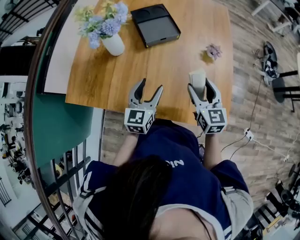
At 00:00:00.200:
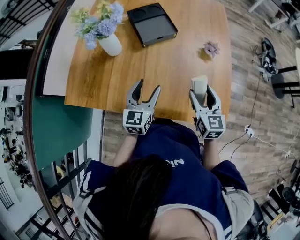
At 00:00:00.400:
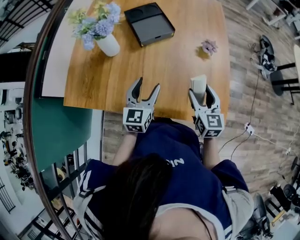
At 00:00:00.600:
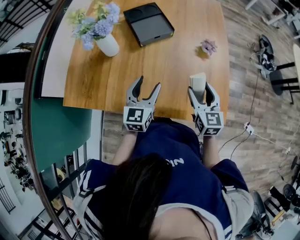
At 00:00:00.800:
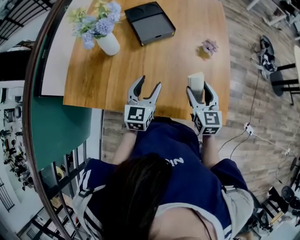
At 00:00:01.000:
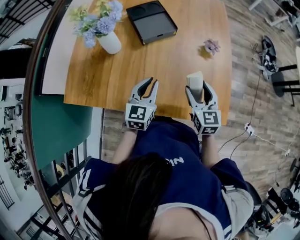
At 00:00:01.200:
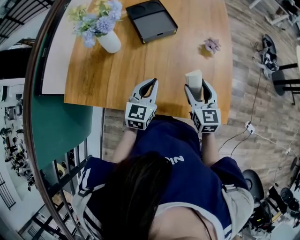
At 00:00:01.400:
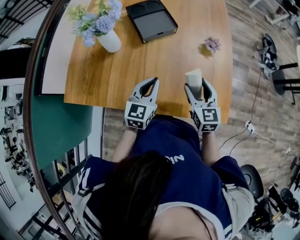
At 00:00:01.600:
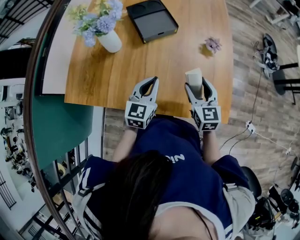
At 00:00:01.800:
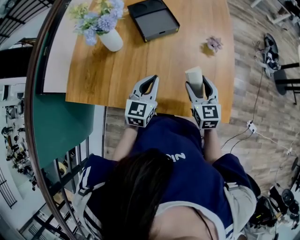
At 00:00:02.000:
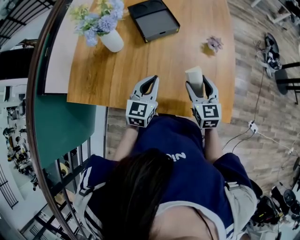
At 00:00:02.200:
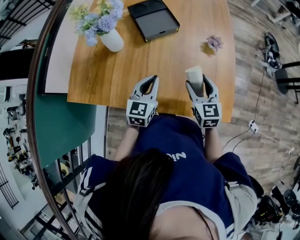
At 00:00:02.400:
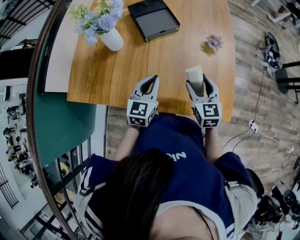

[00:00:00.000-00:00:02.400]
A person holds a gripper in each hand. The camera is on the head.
00:00:00.000 to 00:00:01.200: The left gripper closes its fingers.
00:00:01.200 to 00:00:02.400: Both grippers stay about where they are.

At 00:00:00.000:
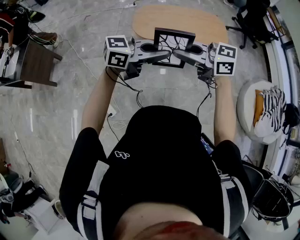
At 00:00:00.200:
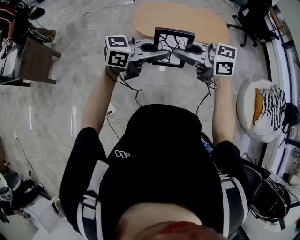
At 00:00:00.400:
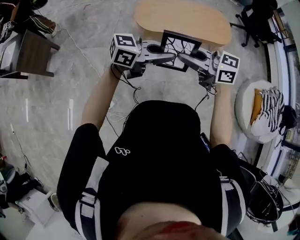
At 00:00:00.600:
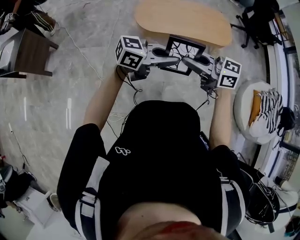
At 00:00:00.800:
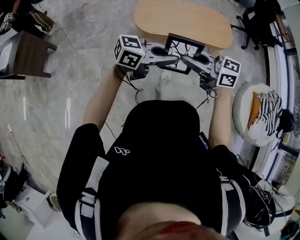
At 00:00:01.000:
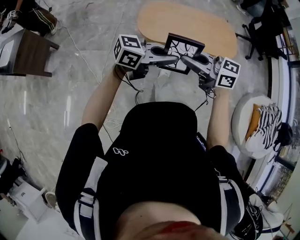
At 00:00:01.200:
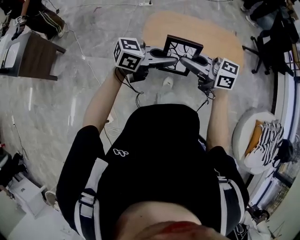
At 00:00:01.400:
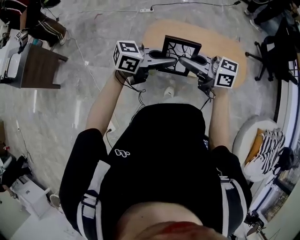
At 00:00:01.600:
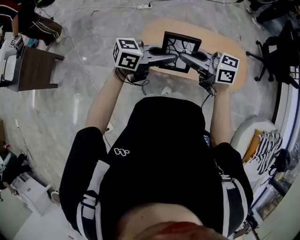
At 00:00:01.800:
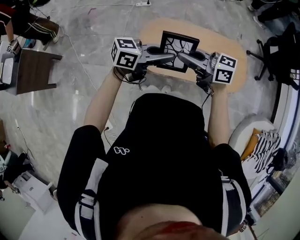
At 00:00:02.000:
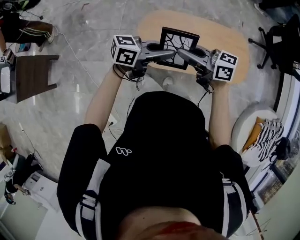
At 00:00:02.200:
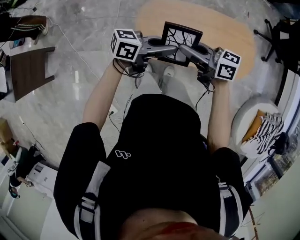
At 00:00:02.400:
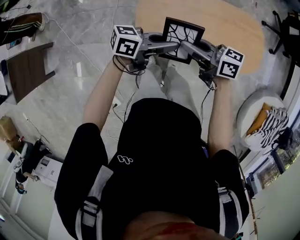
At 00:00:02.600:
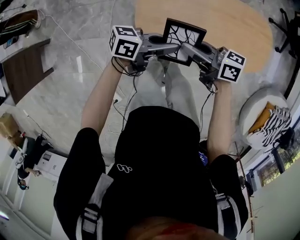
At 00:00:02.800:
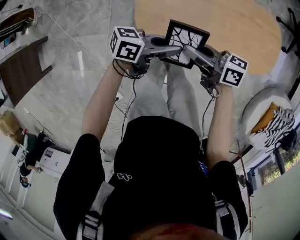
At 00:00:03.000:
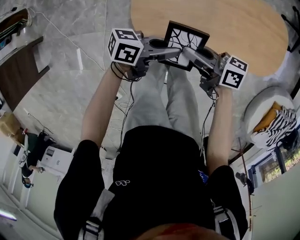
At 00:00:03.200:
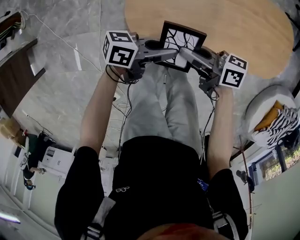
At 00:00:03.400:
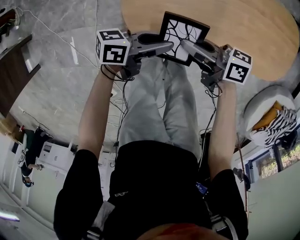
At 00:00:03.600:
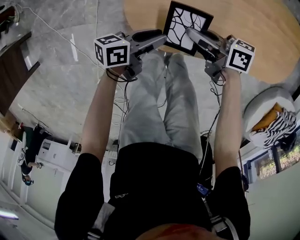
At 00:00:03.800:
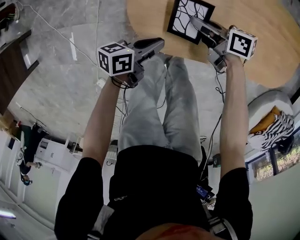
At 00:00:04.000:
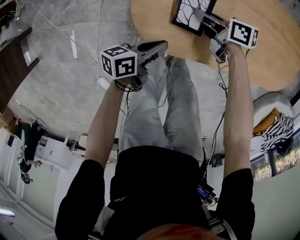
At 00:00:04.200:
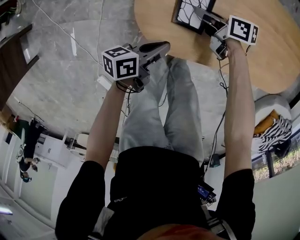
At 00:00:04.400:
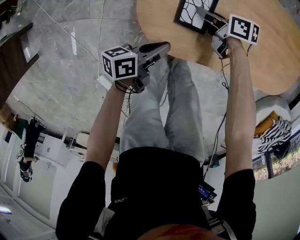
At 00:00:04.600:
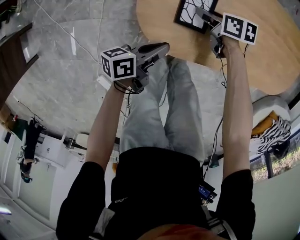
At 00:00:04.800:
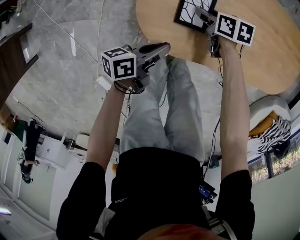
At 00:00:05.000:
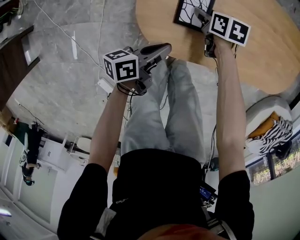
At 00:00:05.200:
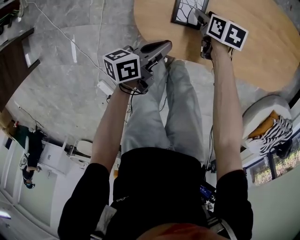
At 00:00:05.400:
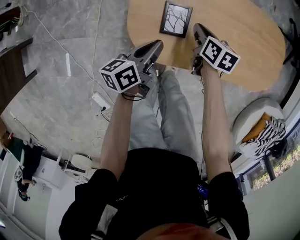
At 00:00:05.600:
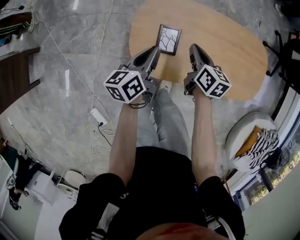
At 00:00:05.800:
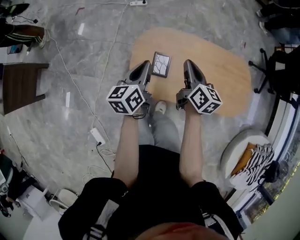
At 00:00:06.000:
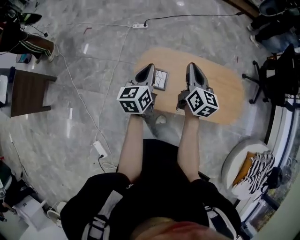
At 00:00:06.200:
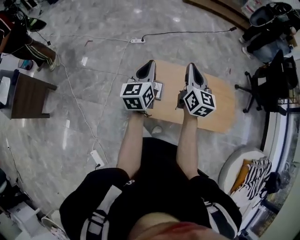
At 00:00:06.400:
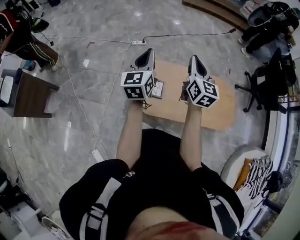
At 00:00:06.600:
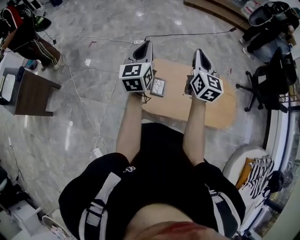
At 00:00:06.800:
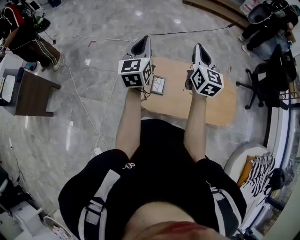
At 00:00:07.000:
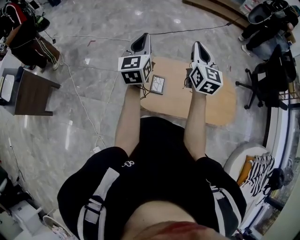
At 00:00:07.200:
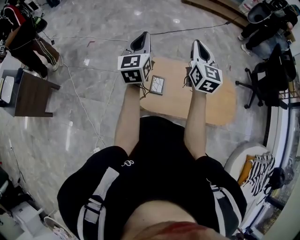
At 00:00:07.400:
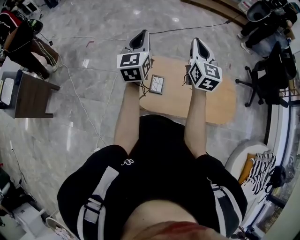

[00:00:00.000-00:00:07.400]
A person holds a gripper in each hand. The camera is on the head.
00:00:00.000 to 00:00:01.400: The left gripper shifts by about 35 cm. Meanwhile the right gripper shifts by about 35 cm.
00:00:01.400 to 00:00:03.000: The grippers both shift downward by some 30 cm. The left gripper changes its angle by some 40 degrees. Meanwhile the right gripper changes its angle by roughly 40 degrees.
00:00:03.000 to 00:00:04.400: The grippers both shift downward by some 20 cm. The left gripper rotates approximately 30 degrees, and opens, then closes once more, while the right gripper changes its angle by approximately 30 degrees.
00:00:04.400 to 00:00:06.000: Both grippers travel together upward, some 40 cm. The right gripper turns by roughly 70 degrees, and opens, then closes once more. The left gripper rotates some 60 degrees.
00:00:06.000 to 00:00:07.400: Both grippers travel together upward, some 15 cm. The right gripper swivels approximately 20 degrees. The left gripper swivels some 30 degrees.

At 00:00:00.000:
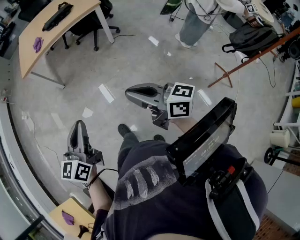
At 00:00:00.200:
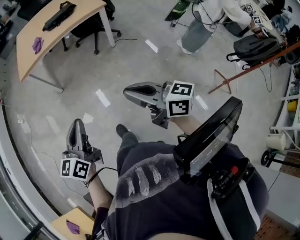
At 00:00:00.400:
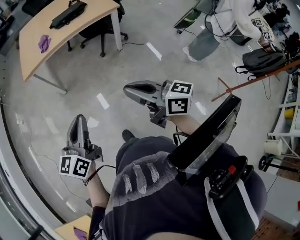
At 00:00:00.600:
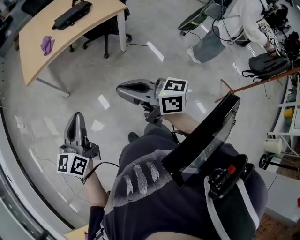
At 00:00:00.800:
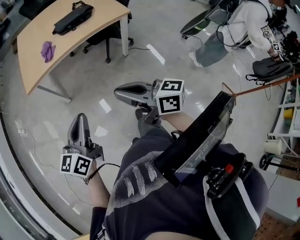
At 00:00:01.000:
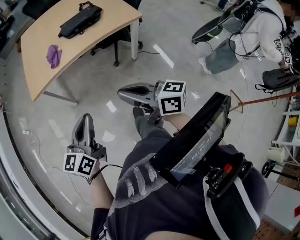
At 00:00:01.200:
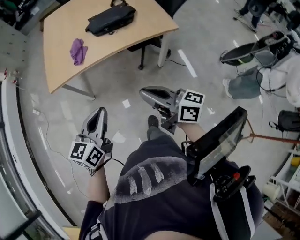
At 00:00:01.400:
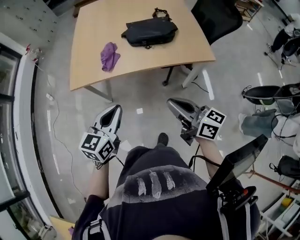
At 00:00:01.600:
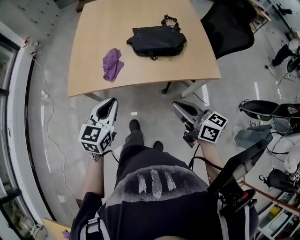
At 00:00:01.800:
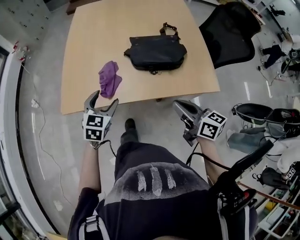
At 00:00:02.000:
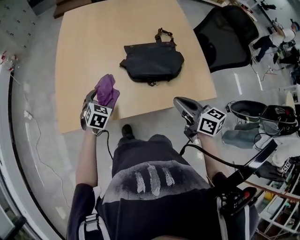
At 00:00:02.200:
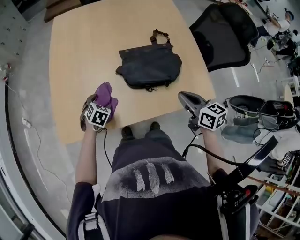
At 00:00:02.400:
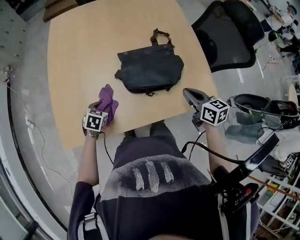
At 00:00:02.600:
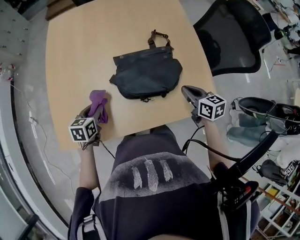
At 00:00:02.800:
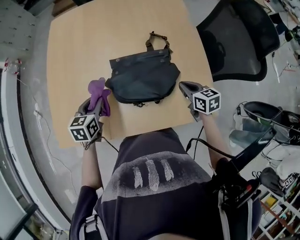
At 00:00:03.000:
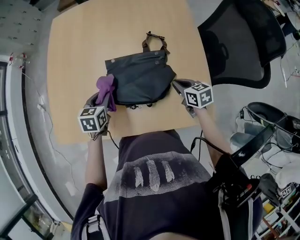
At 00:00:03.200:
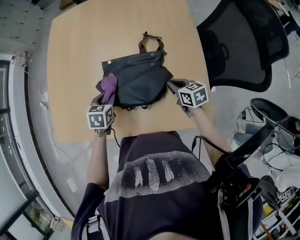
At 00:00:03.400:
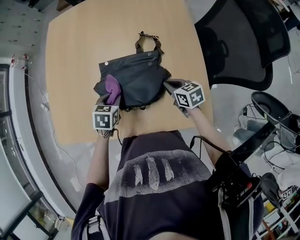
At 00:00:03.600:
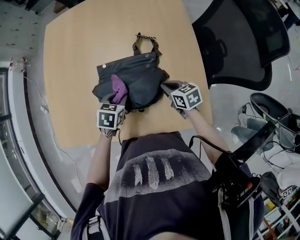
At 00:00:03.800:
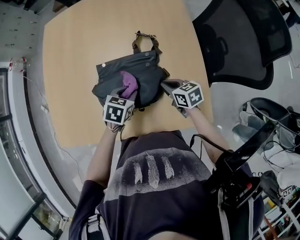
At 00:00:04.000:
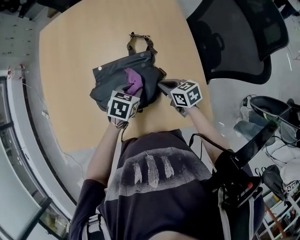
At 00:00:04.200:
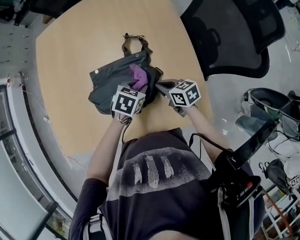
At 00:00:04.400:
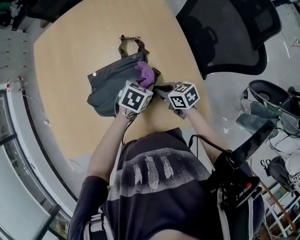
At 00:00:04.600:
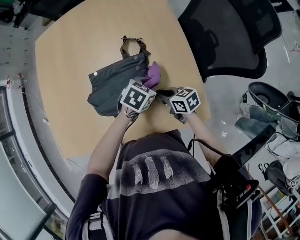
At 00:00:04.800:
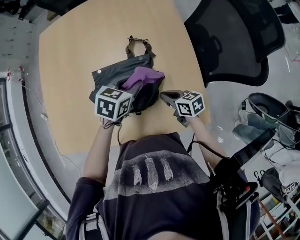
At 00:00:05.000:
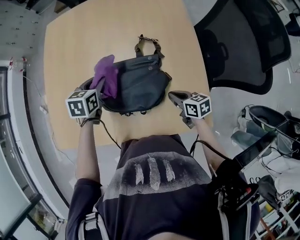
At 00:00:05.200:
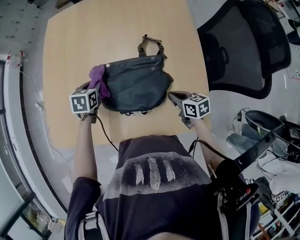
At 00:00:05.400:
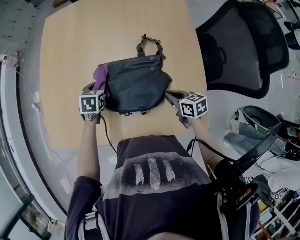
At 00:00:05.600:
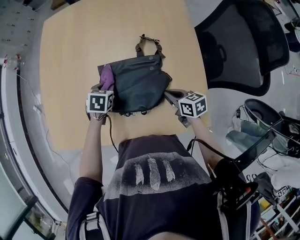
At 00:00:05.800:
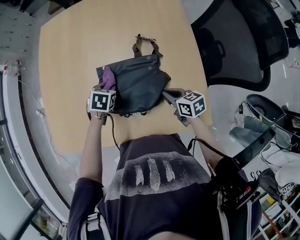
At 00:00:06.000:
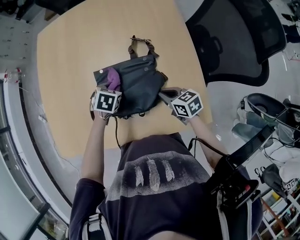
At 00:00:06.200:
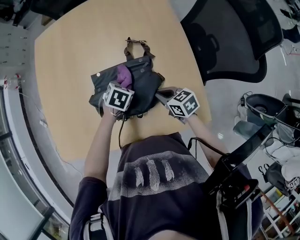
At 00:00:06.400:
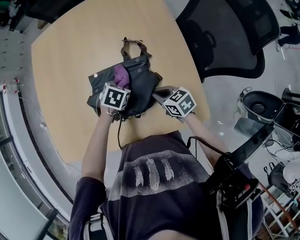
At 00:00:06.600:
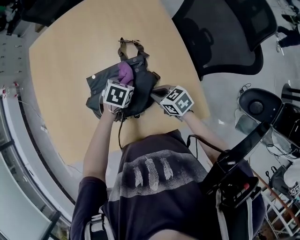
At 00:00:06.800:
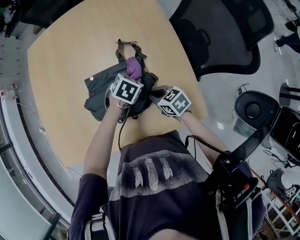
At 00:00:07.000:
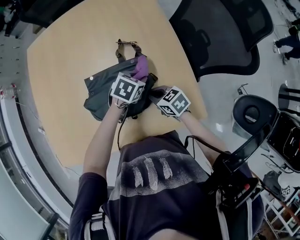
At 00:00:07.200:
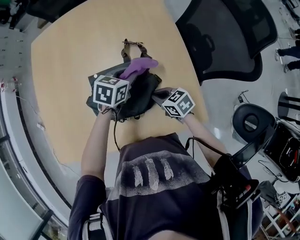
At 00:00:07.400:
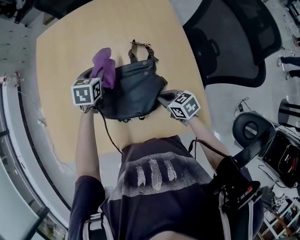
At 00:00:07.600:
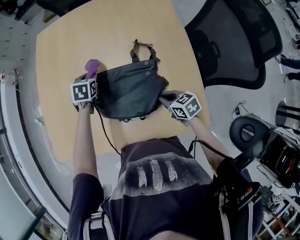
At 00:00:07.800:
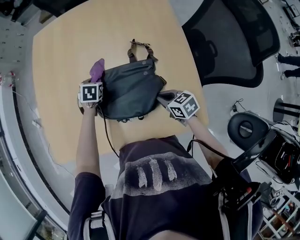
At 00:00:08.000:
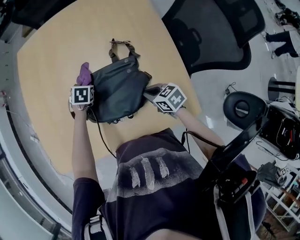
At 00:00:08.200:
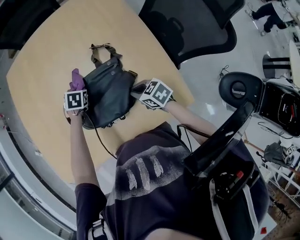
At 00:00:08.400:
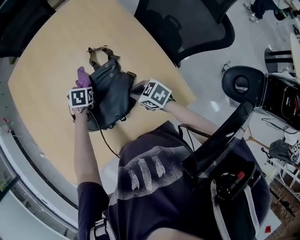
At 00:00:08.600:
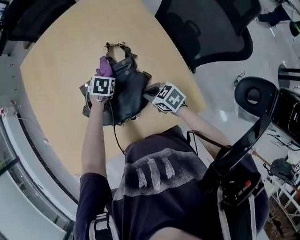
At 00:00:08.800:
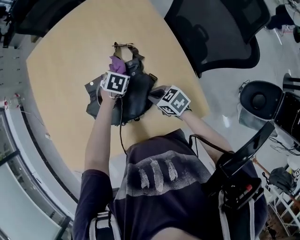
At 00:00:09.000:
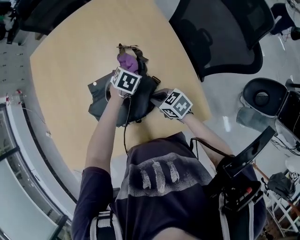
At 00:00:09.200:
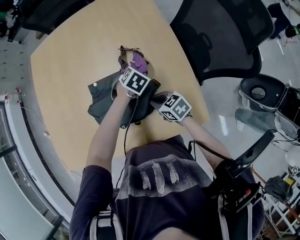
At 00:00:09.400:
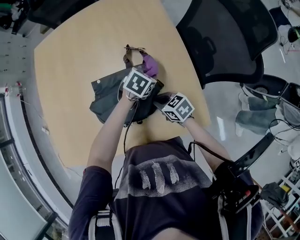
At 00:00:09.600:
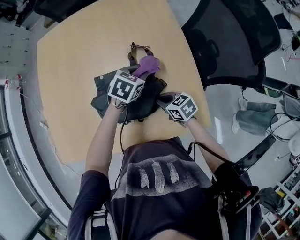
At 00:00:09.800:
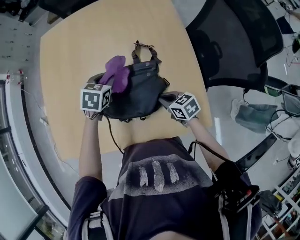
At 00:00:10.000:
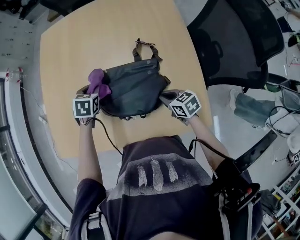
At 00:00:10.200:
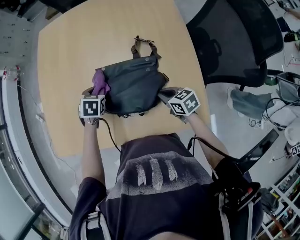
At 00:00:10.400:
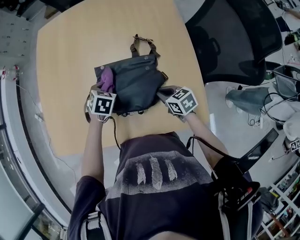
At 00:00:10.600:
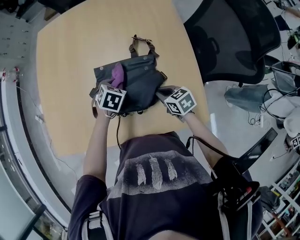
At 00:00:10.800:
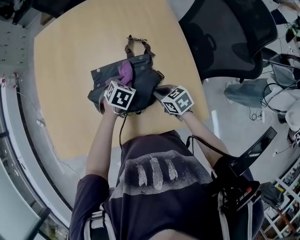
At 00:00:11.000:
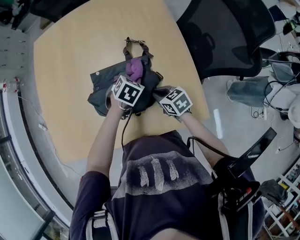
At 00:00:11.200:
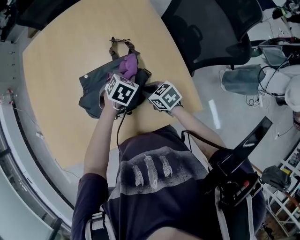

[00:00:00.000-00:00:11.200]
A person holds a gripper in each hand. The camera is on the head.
00:00:00.000 to 00:00:01.600: The two grippers travel together, forward, about 80 cm. The left gripper swivels some 20 degrees.
00:00:01.600 to 00:00:03.200: The right gripper shifts some 50 cm forward, to the right and downward, and points its fingers approximately 30 degrees further downward. The left gripper travels forward and downward by some 35 cm, points its fingers roughly 30 degrees further downward, and opens, then closes once more.
00:00:03.200 to 00:00:04.800: The left gripper changes place by approximately 20 cm, and changes its angle by about 30 degrees.
00:00:04.800 to 00:00:06.400: The left gripper travels downward by some 10 cm, moves roughly 25 cm to the left and comes back, and rotates approximately 20 degrees.
00:00:06.400 to 00:00:08.000: The left gripper travels upward and back again, about 10 cm each way.
00:00:08.000 to 00:00:09.600: The left gripper ends up some 25 cm from where it was, and turns by some 30 degrees.
00:00:09.600 to 00:00:11.200: The left gripper moves some 25 cm to the left and comes back.

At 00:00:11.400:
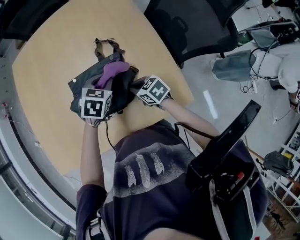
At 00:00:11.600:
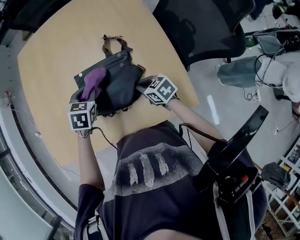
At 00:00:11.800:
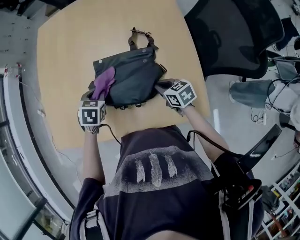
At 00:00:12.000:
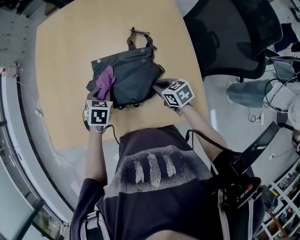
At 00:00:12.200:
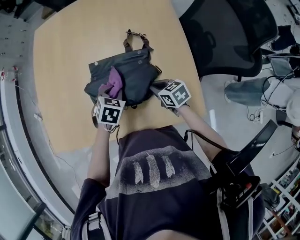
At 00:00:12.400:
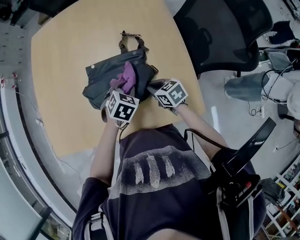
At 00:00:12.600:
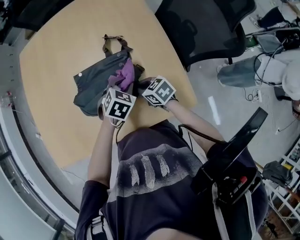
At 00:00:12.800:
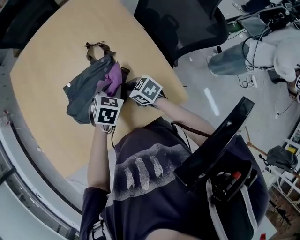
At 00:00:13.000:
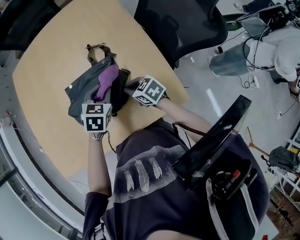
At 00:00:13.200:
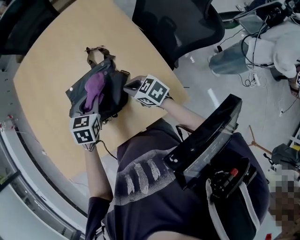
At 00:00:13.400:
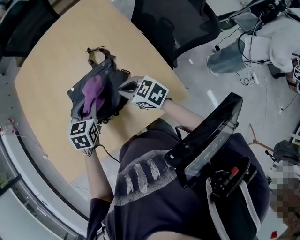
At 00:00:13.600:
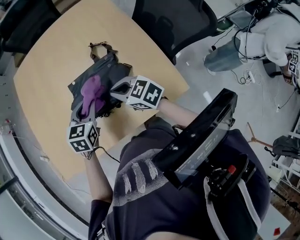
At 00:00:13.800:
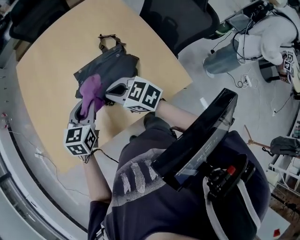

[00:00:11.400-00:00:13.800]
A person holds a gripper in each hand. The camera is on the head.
00:00:11.400 to 00:00:12.600: The left gripper travels backward by roughly 5 cm, and travels to the left and back again, about 20 cm each way.
00:00:12.600 to 00:00:13.800: The left gripper goes approximately 25 cm to the left and upward, and changes its angle by roughly 30 degrees. The right gripper goes approximately 25 cm upward and to the left, and turns by roughly 20 degrees.
